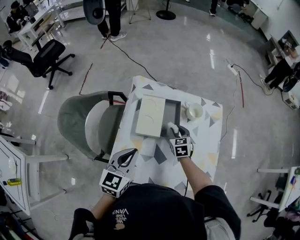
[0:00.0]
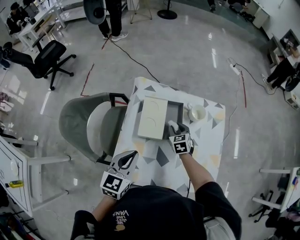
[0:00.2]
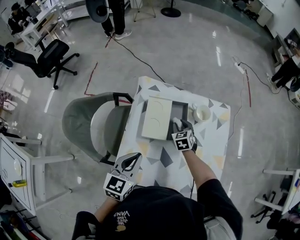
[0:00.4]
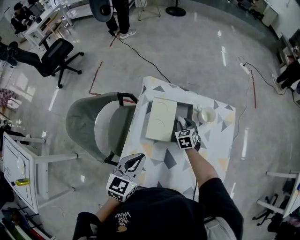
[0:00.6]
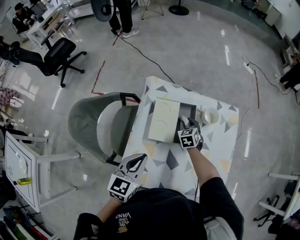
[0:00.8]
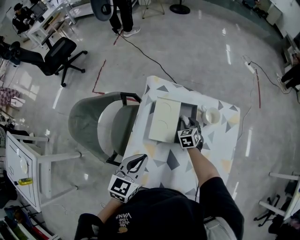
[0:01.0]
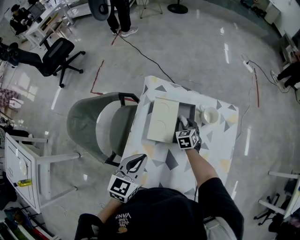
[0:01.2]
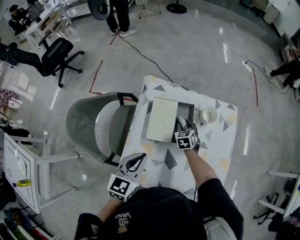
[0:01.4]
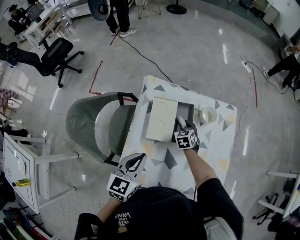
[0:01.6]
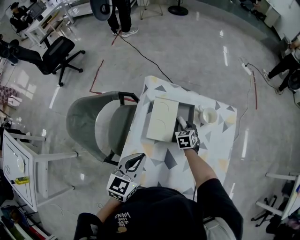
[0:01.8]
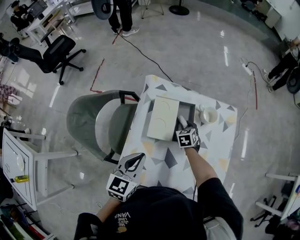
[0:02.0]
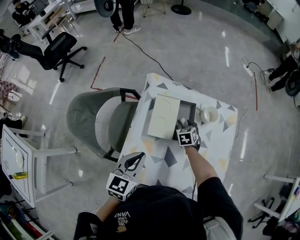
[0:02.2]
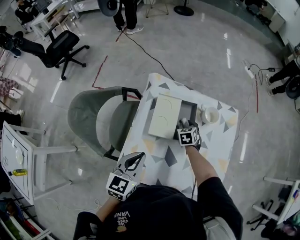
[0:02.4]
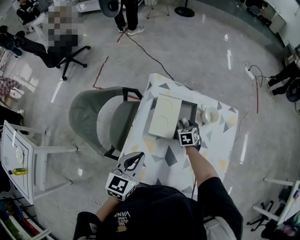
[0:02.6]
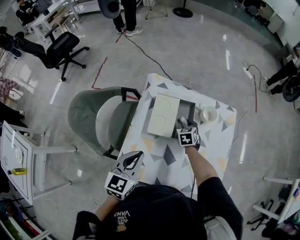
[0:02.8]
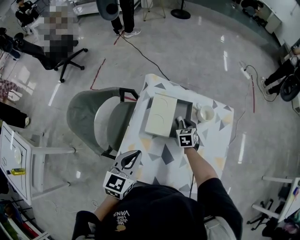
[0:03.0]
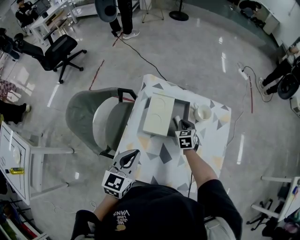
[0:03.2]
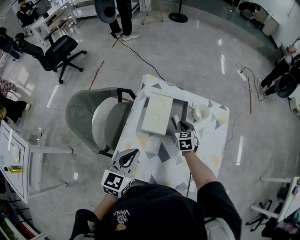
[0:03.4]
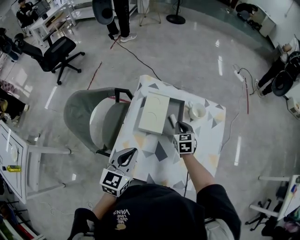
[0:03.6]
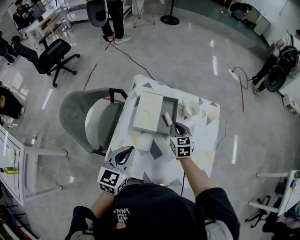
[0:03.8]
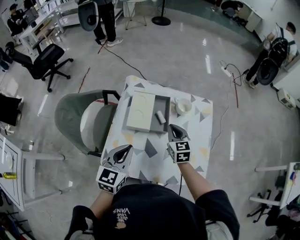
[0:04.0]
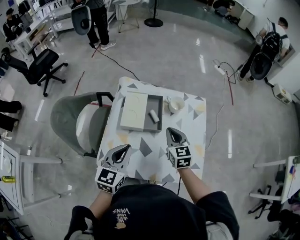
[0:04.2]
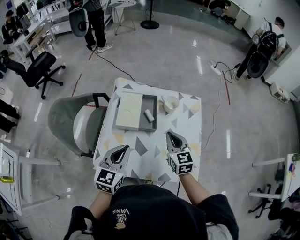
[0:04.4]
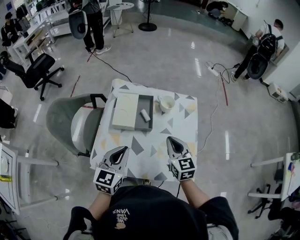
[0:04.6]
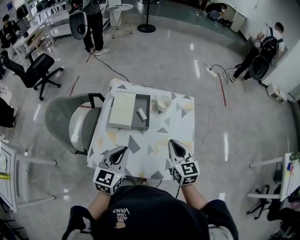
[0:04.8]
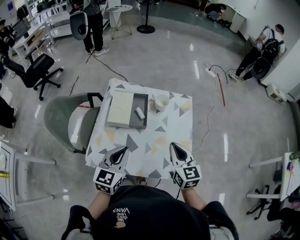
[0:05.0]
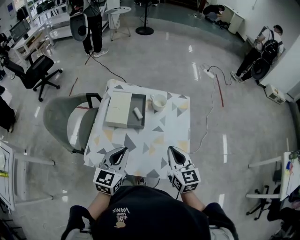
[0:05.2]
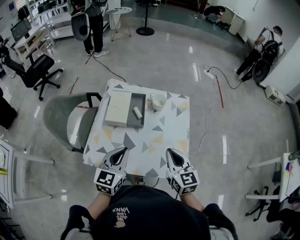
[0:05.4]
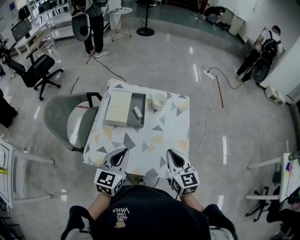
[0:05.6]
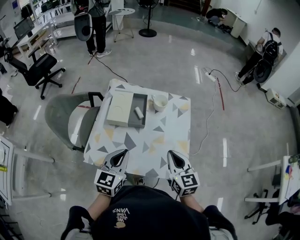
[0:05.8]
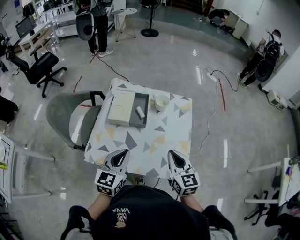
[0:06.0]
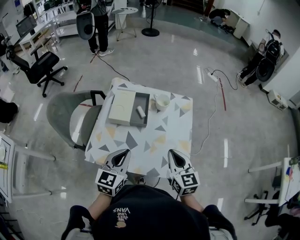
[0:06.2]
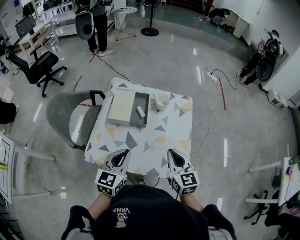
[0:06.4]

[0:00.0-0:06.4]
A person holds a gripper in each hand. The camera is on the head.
0:00.0 to 0:01.6: The right gripper moves forward and downward, roughly 10 cm.
0:01.6 to 0:03.2: The right gripper shifts roughly 5 cm upward, and closes its fingers.
0:03.2 to 0:04.8: The left gripper moves to the right and backward, roughly 15 cm, while the right gripper heads backward, upward and to the right, covering roughly 35 cm, and changes its angle by about 30 degrees.
0:04.8 to 0:06.4: The right gripper travels backward by about 5 cm; the left gripper ends up roughly 5 cm from where it was.

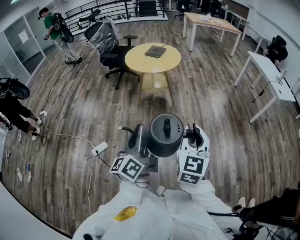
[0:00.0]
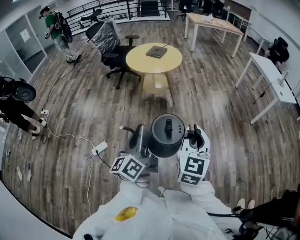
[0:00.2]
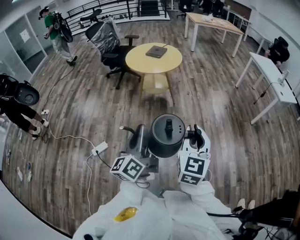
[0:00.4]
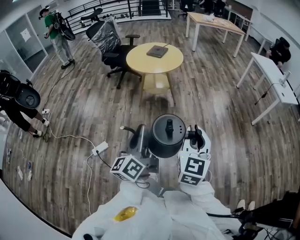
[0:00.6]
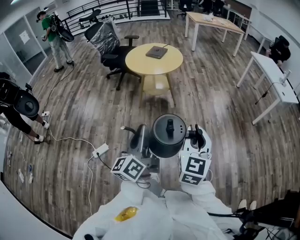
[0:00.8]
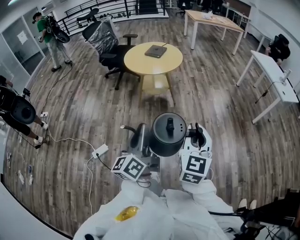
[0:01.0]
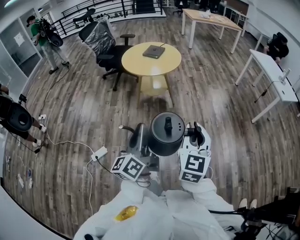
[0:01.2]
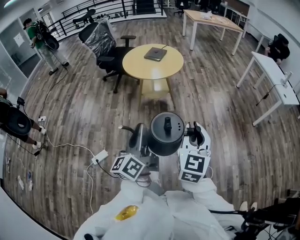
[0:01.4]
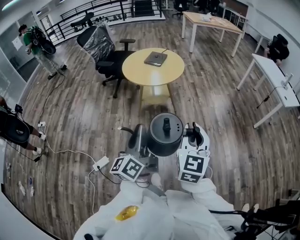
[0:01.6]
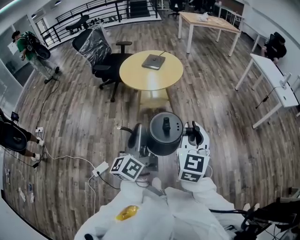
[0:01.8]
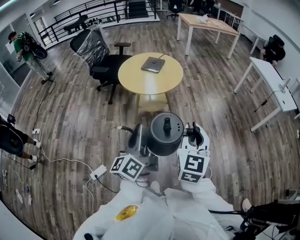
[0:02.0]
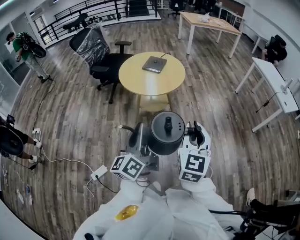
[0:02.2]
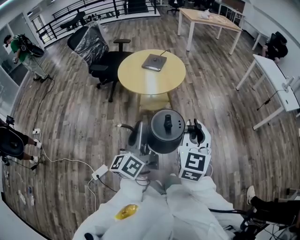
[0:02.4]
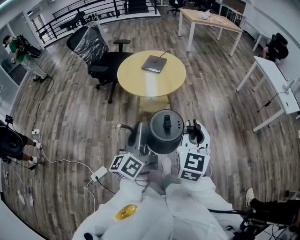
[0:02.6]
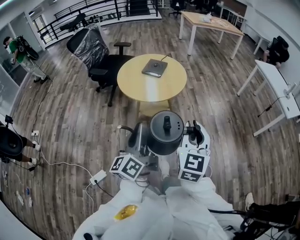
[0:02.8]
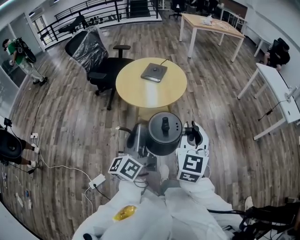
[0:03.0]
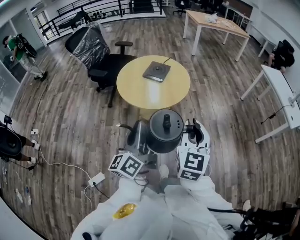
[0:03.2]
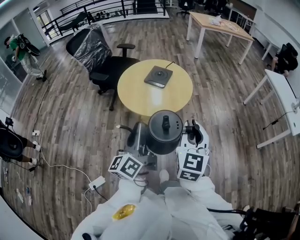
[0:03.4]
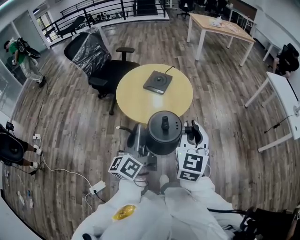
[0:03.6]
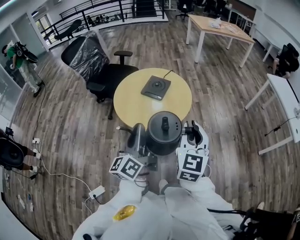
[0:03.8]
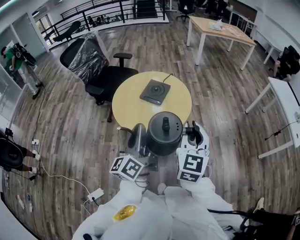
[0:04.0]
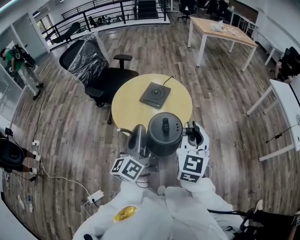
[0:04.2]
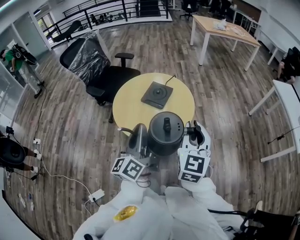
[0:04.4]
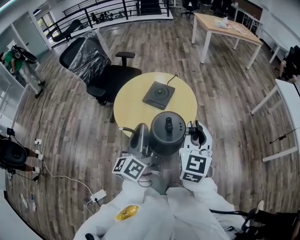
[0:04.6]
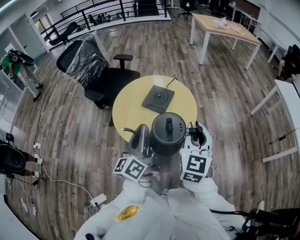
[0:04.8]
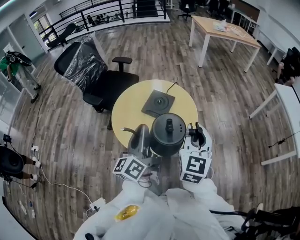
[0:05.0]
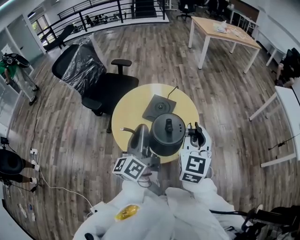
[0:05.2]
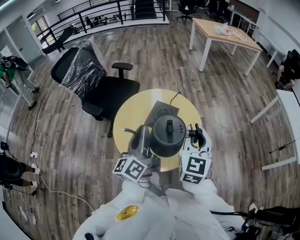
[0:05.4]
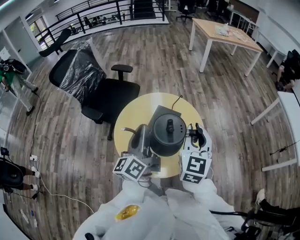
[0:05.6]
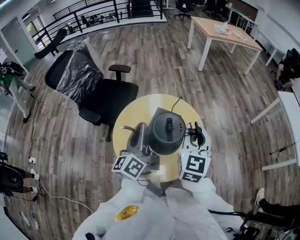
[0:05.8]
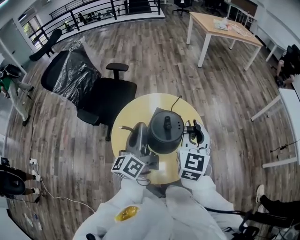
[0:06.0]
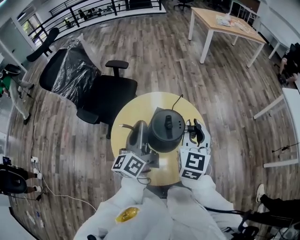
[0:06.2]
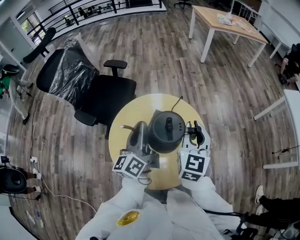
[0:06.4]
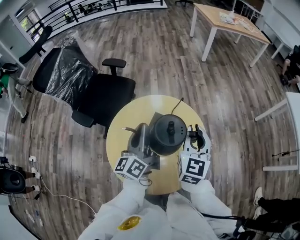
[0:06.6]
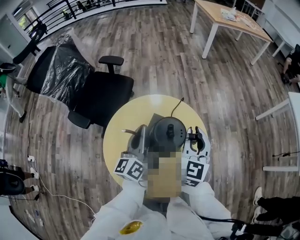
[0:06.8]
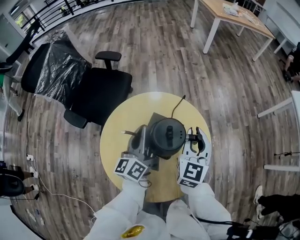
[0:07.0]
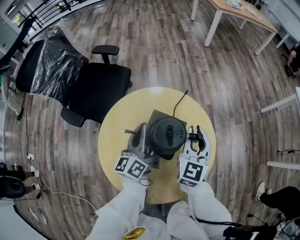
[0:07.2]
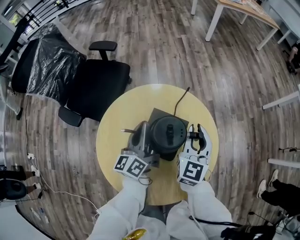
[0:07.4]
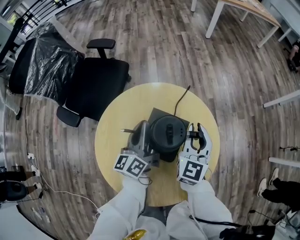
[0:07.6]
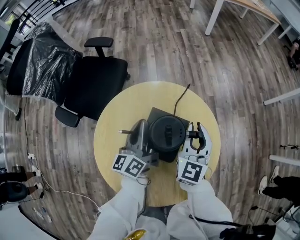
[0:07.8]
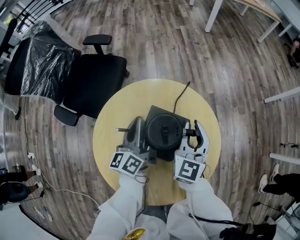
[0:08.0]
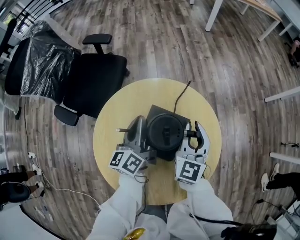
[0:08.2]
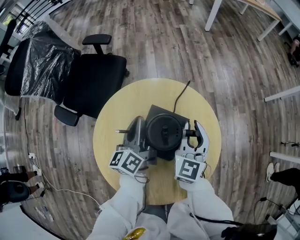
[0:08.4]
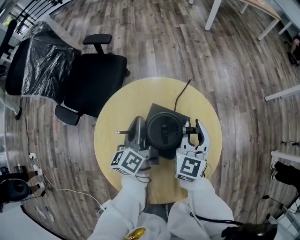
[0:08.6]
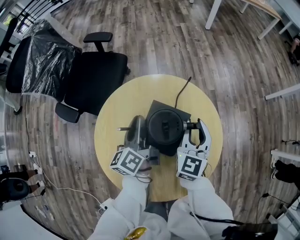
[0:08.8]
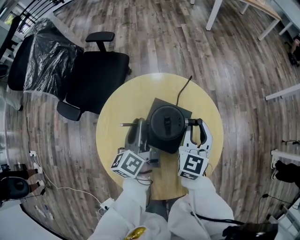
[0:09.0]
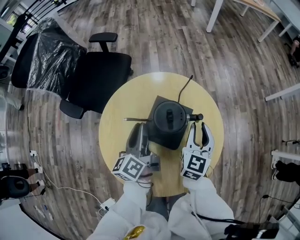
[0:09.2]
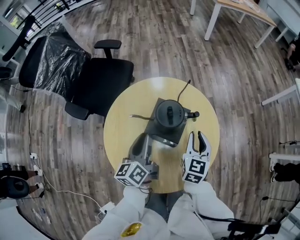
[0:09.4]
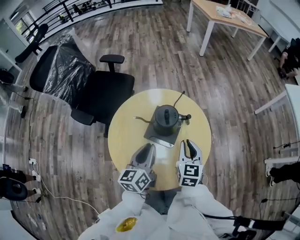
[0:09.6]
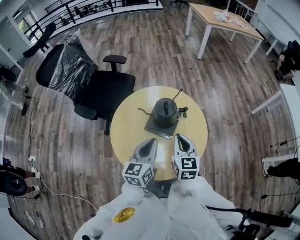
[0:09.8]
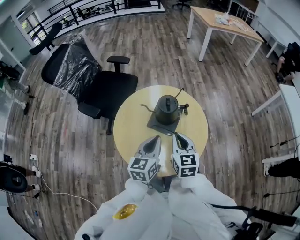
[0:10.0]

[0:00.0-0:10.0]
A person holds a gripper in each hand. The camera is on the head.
0:00.0 to 0:01.4: Both grippers move forward, about 15 cm.
0:01.4 to 0:02.8: The two grippers go roughly 25 cm forward.
0:02.8 to 0:04.2: The two grippers go approximately 30 cm forward.
0:04.2 to 0:05.8: Both grippers move forward, about 25 cm.
0:05.8 to 0:07.2: The right gripper is displaced downward and forward by roughly 25 cm, while the left gripper is displaced forward and downward by some 25 cm.
0:07.2 to 0:08.6: The two grippers go some 5 cm downward.
0:08.6 to 0:10.0: The two grippers go roughly 25 cm backward and upward. The left gripper swivels about 30 degrees, and opens and closes again, while the right gripper turns by about 20 degrees.

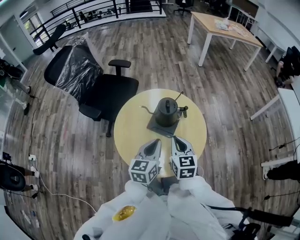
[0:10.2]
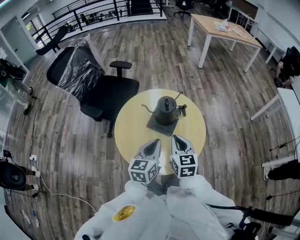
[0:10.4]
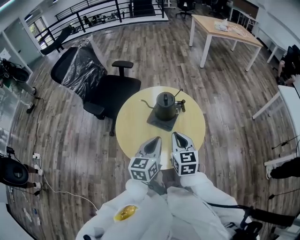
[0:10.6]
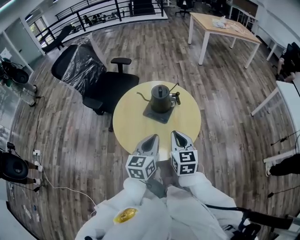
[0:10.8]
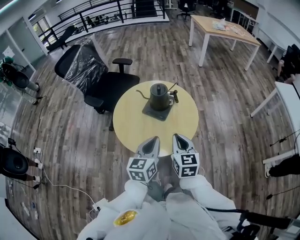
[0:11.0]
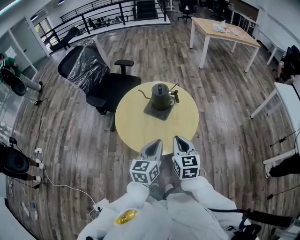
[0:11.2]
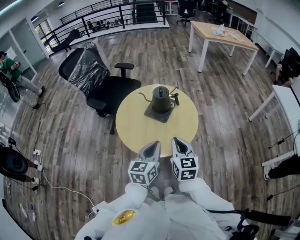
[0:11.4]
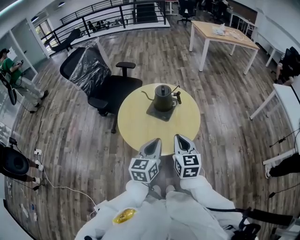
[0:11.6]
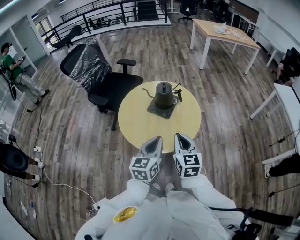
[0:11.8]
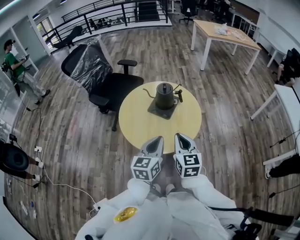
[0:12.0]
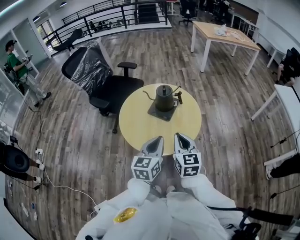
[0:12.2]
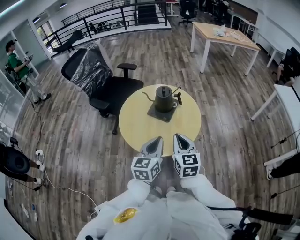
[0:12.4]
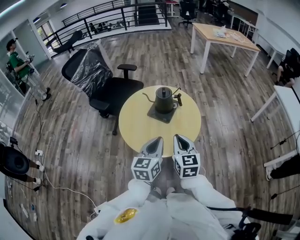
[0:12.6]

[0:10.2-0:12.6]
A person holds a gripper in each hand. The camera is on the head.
0:10.2 to 0:11.4: The grippers both shift backward by roughly 15 cm.
0:11.4 to 0:12.6: The grippers make only small movements.

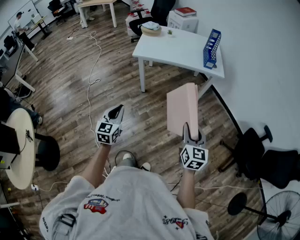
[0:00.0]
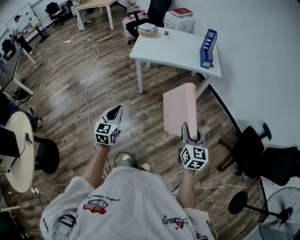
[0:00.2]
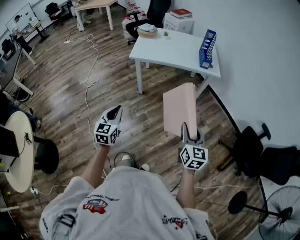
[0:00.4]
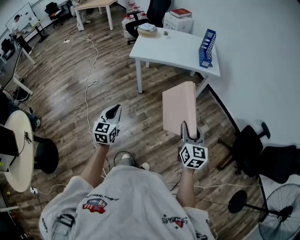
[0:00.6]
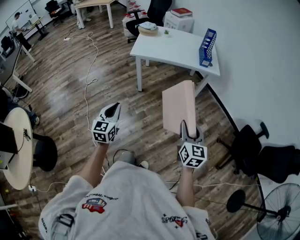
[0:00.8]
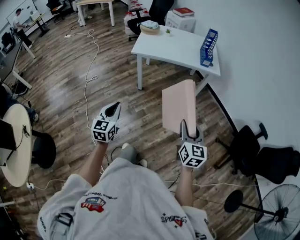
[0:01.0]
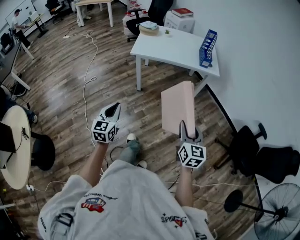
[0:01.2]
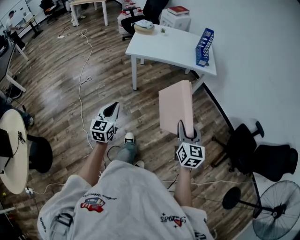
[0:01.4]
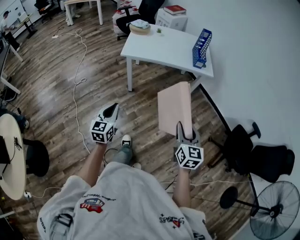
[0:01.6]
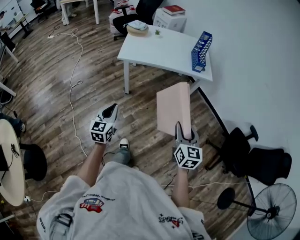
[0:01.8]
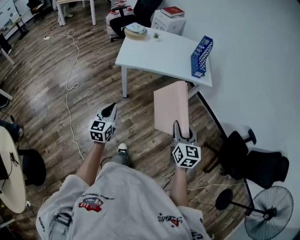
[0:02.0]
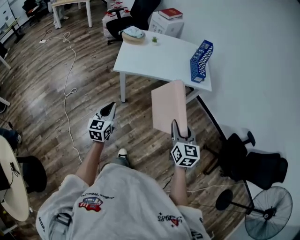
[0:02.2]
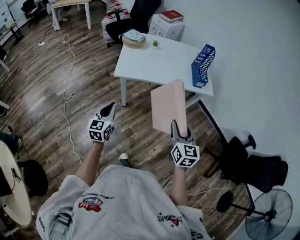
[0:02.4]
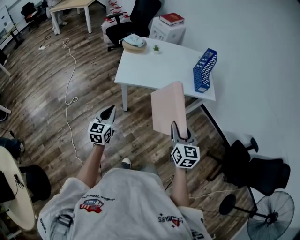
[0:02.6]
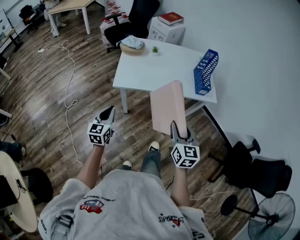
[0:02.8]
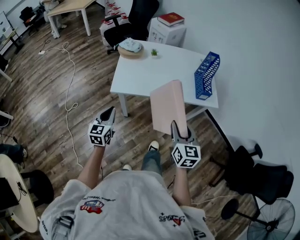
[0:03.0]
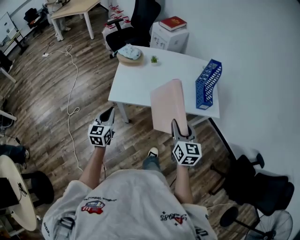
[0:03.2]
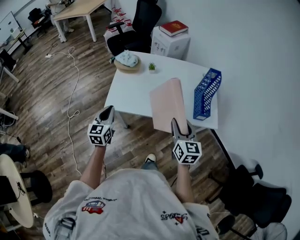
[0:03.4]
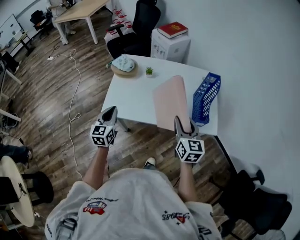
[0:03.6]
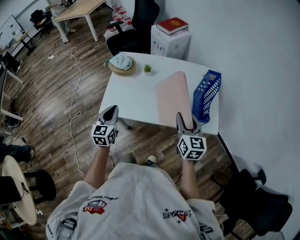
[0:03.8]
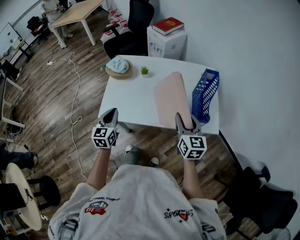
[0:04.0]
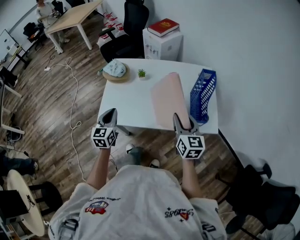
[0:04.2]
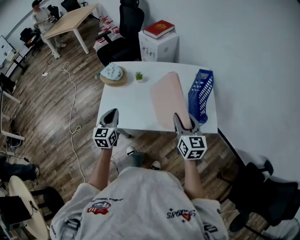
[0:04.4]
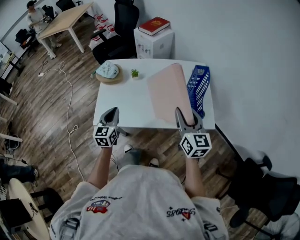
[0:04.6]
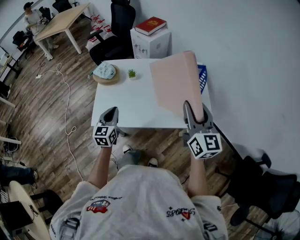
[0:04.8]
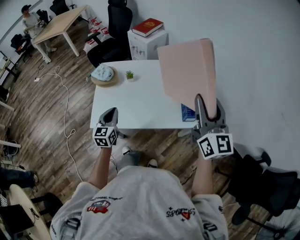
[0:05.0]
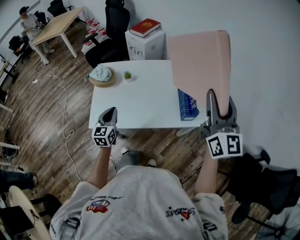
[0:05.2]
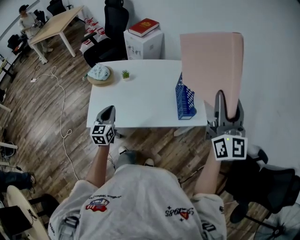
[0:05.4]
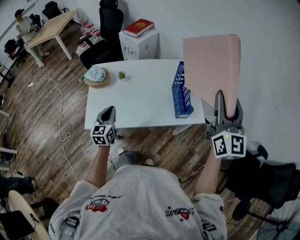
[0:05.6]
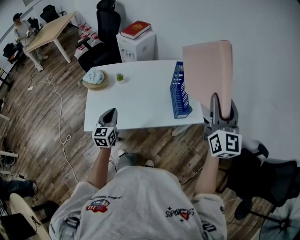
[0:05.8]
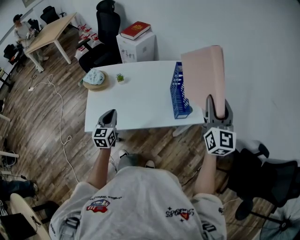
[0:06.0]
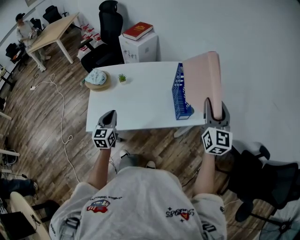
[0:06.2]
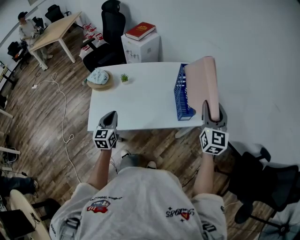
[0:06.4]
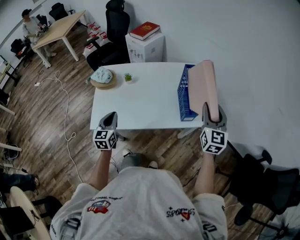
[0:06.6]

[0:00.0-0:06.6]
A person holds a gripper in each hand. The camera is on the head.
0:00.0 to 0:01.6: The grippers make only small movements.
0:01.6 to 0:03.2: Both grippers are carried forward, approximately 50 cm.
0:03.2 to 0:05.0: The right gripper shifts about 35 cm to the right, upward and forward, and turns by some 30 degrees; the left gripper heads forward and to the right, covering some 25 cm.
0:05.0 to 0:06.6: The right gripper goes about 15 cm downward and to the right, and rotates about 20 degrees.
